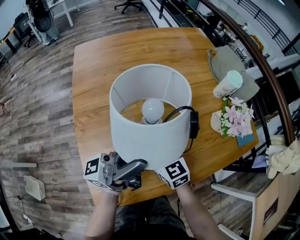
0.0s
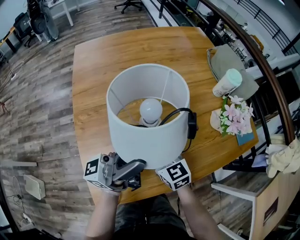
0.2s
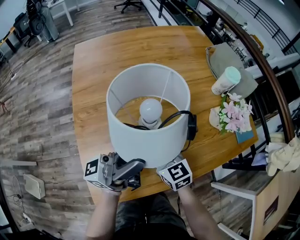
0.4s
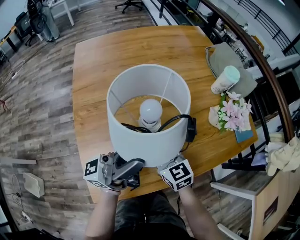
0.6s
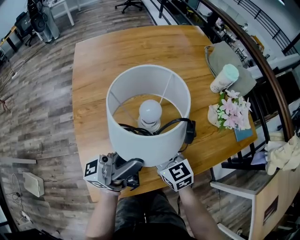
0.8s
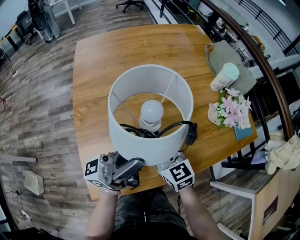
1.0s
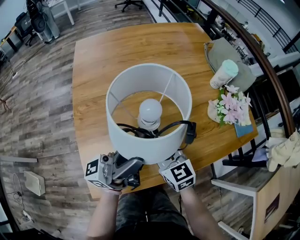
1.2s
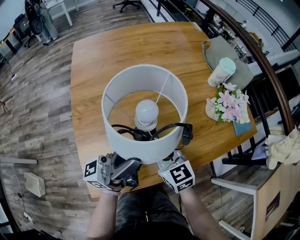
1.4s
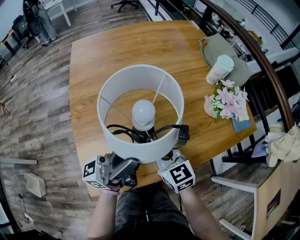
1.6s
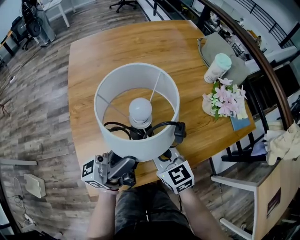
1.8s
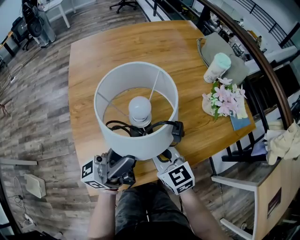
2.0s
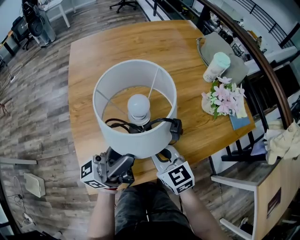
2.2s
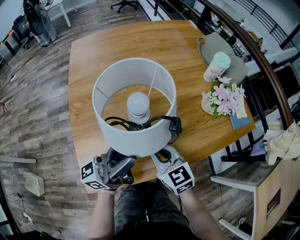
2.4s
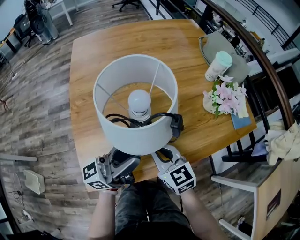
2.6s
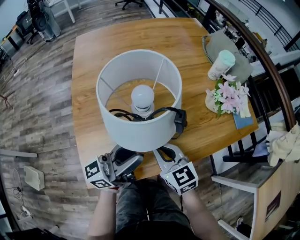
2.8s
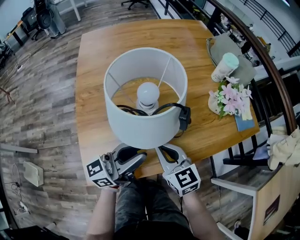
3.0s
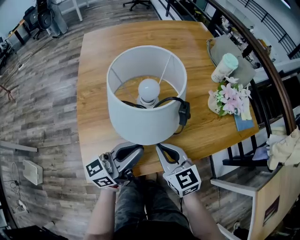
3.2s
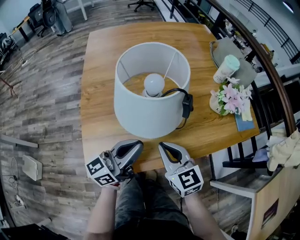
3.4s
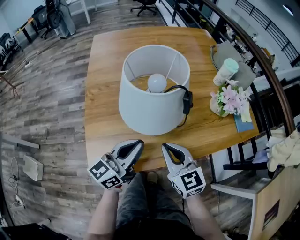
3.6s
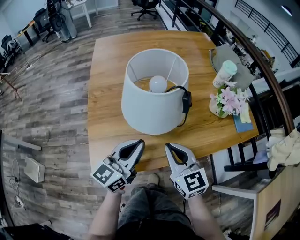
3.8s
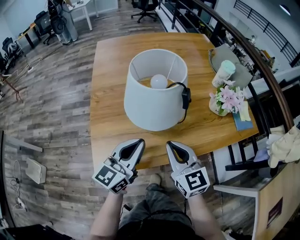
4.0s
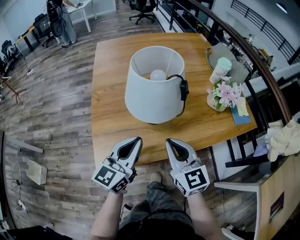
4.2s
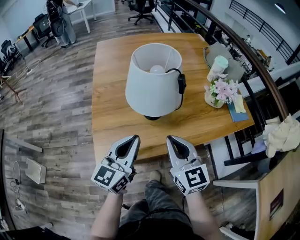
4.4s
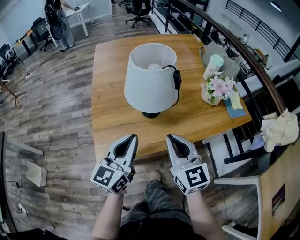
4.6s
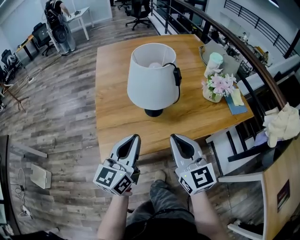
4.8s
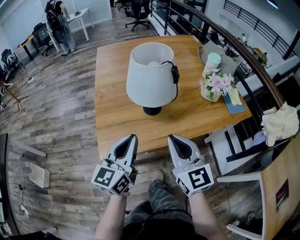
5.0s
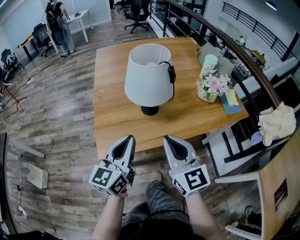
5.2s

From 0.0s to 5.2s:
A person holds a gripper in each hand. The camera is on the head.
From 0.0s to 1.8s: The left gripper shifts some 5 cm backward; the right gripper travels backward and to the right by approximately 10 cm, and closes its fingers.
From 1.8s to 3.4s: The right gripper ends up roughly 5 cm from where it was, while the left gripper goes some 10 cm downward, and turns by some 30 degrees.
From 3.4s to 5.2s: The two grippers go some 15 cm backward and upward. The left gripper rotates some 30 degrees.

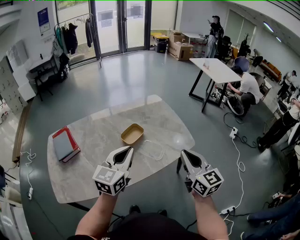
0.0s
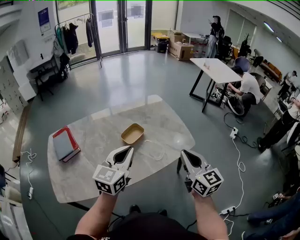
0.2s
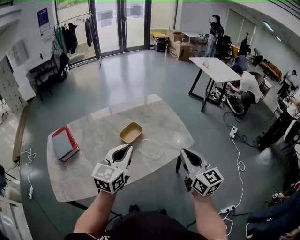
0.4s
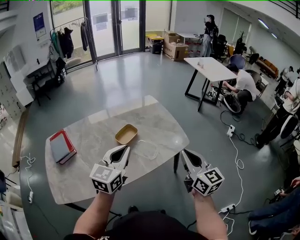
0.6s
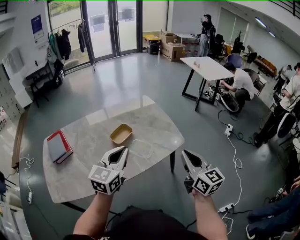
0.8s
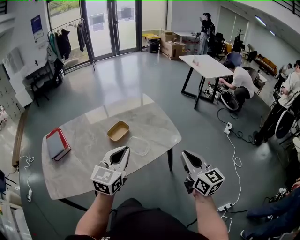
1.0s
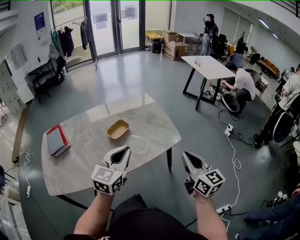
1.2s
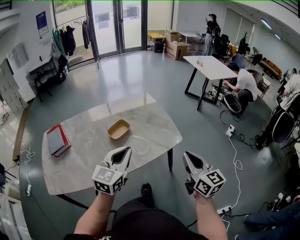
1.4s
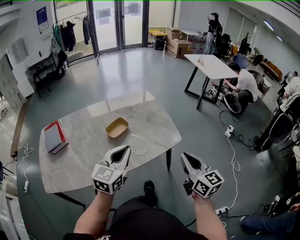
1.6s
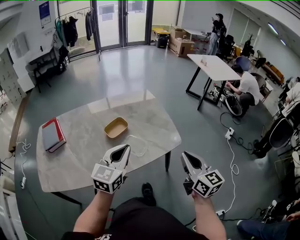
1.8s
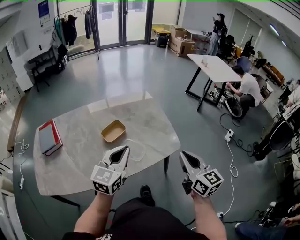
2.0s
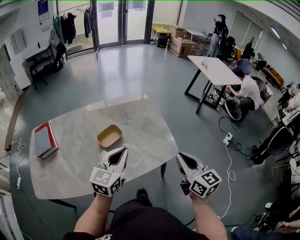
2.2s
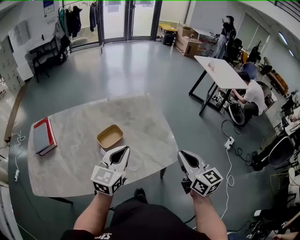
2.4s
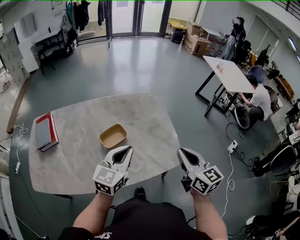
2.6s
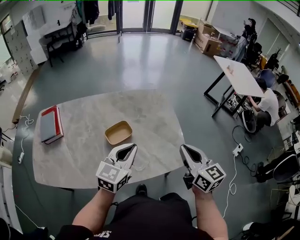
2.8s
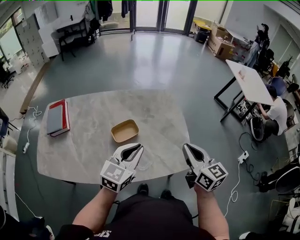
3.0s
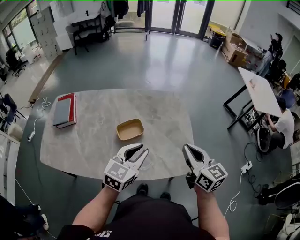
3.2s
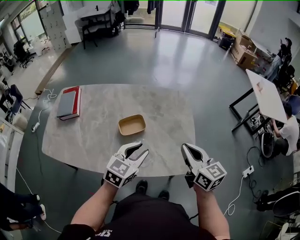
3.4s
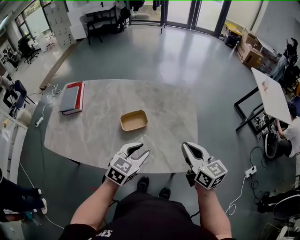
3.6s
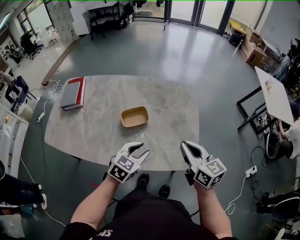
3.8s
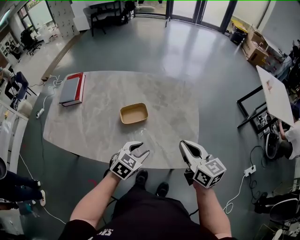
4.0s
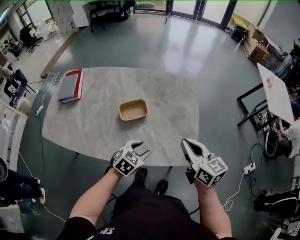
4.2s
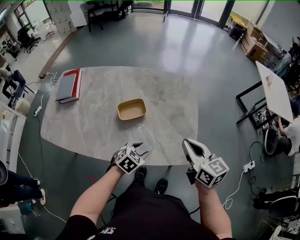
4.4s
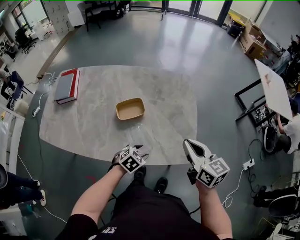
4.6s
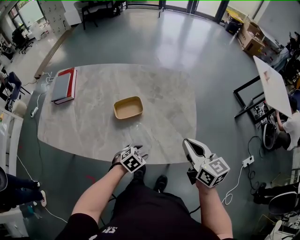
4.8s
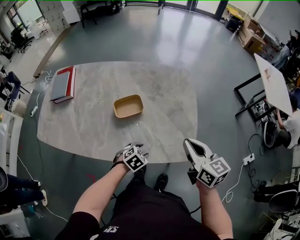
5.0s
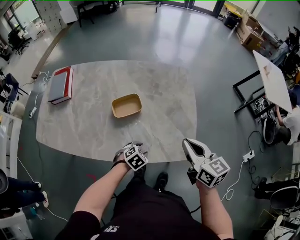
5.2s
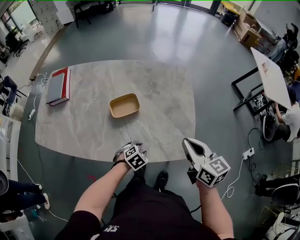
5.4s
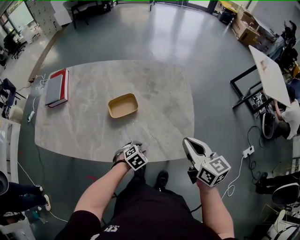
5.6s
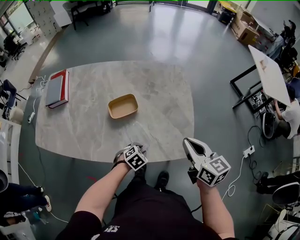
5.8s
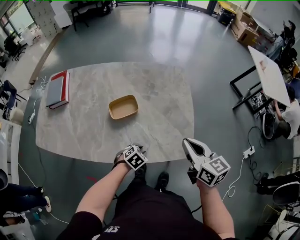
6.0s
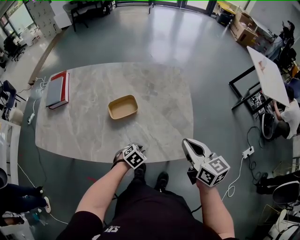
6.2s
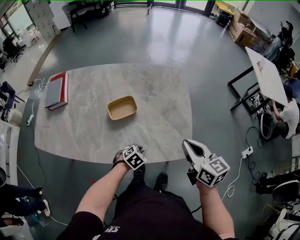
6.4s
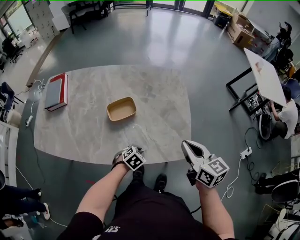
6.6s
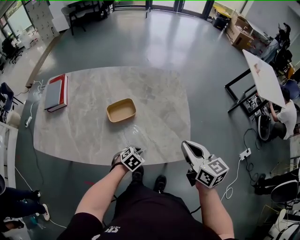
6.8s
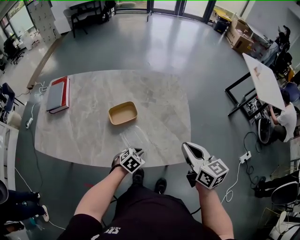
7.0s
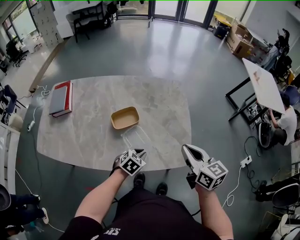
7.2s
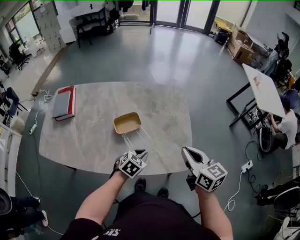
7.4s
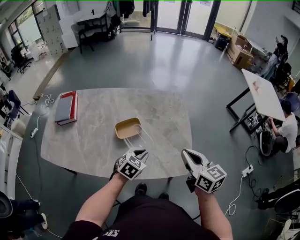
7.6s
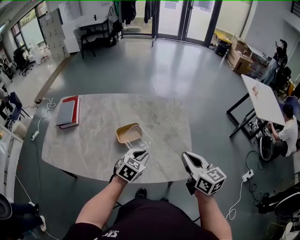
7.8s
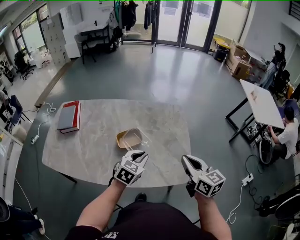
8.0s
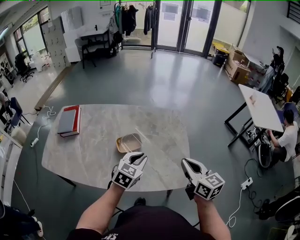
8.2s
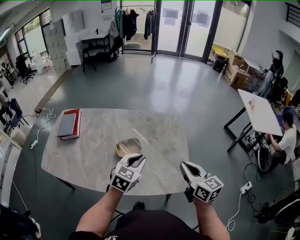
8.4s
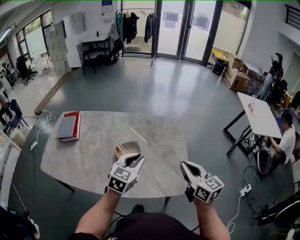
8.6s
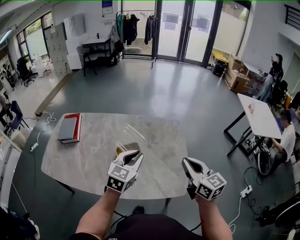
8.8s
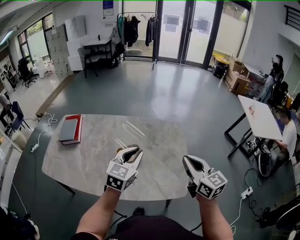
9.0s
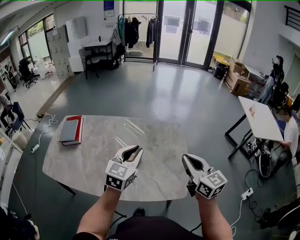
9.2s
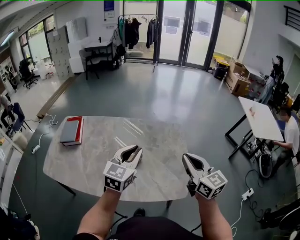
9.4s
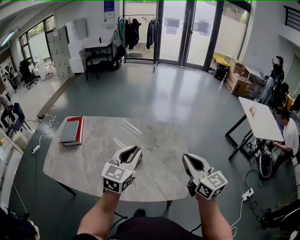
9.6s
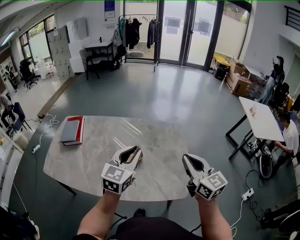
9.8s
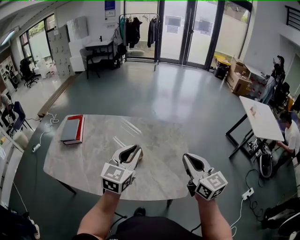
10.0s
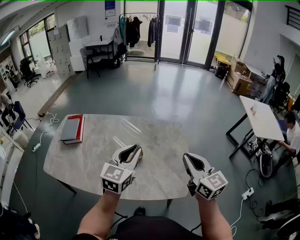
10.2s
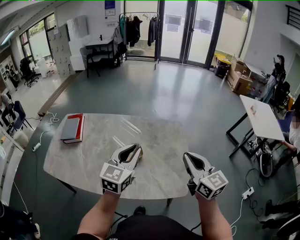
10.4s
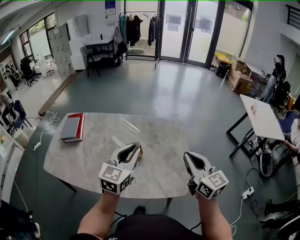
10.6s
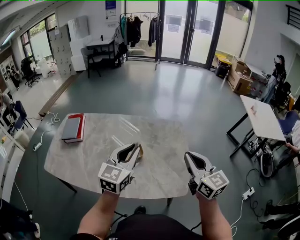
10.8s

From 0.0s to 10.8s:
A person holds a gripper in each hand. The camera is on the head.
From 0.0s to 1.6s: Both grippers move to the right, some 10 cm.
From 1.6s to 3.0s: The right gripper heads forward, covering some 25 cm, and swivels approximately 20 degrees. The left gripper heads forward, covering about 15 cm.
From 3.0s to 4.6s: The left gripper shifts some 25 cm downward, points its fingers some 40 degrees further downward, and opens its fingers.
From 4.6s to 6.2s: The left gripper is displaced downward by approximately 5 cm, and closes.
From 6.2s to 7.8s: The left gripper moves upward, roughly 20 cm, and rotates about 30 degrees. The right gripper changes place by some 5 cm.
From 7.8s to 9.2s: The right gripper travels upward by approximately 10 cm, while the left gripper is displaced upward by approximately 20 cm, and turns by approximately 30 degrees.
From 9.2s to 10.8s: There are only small adjustments of the grippers.

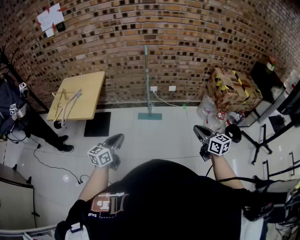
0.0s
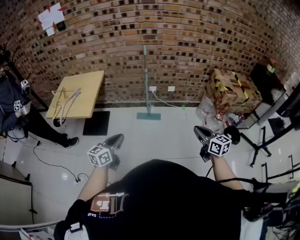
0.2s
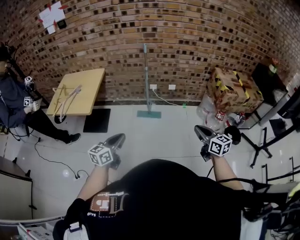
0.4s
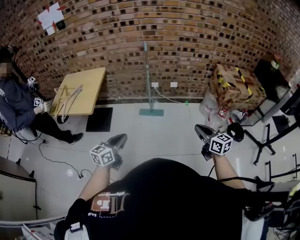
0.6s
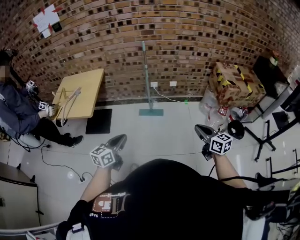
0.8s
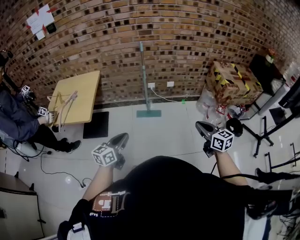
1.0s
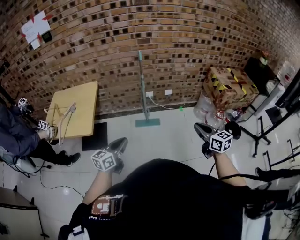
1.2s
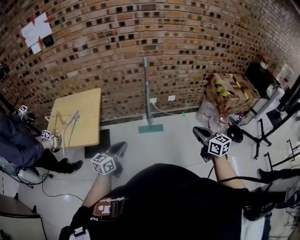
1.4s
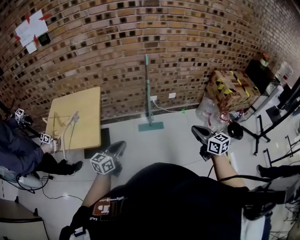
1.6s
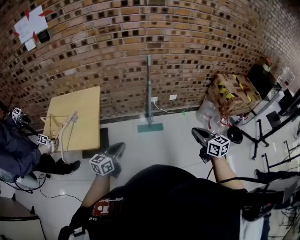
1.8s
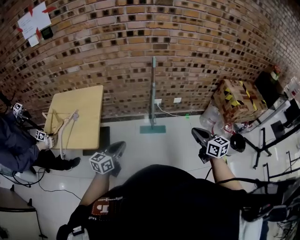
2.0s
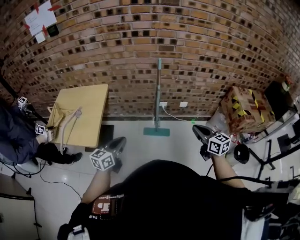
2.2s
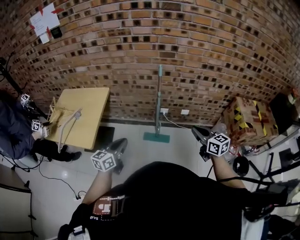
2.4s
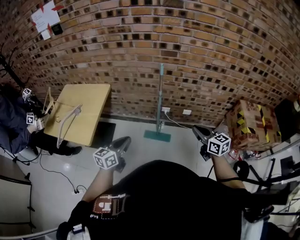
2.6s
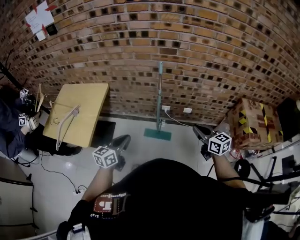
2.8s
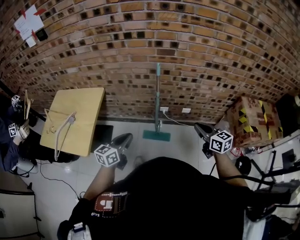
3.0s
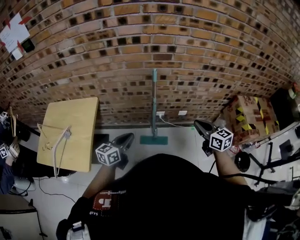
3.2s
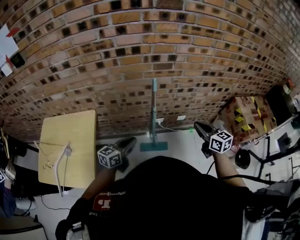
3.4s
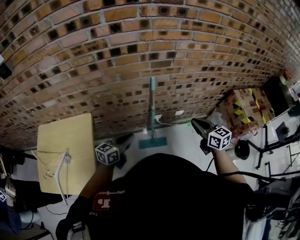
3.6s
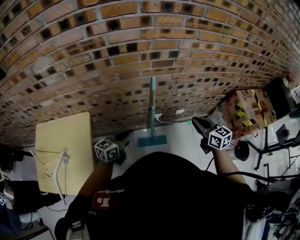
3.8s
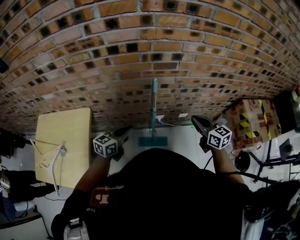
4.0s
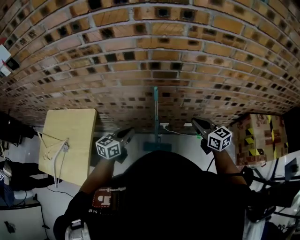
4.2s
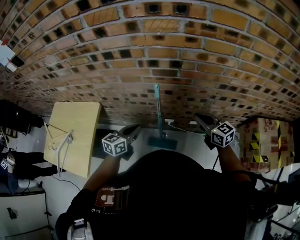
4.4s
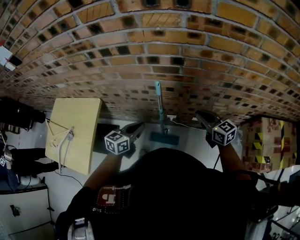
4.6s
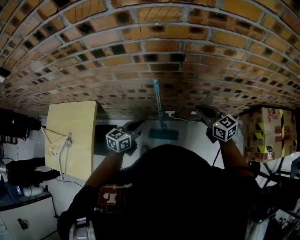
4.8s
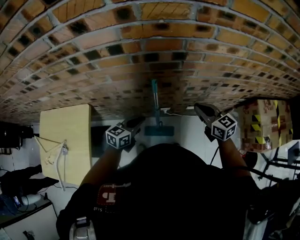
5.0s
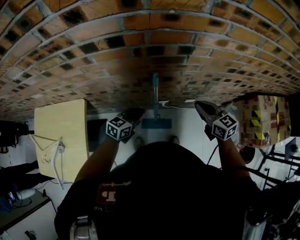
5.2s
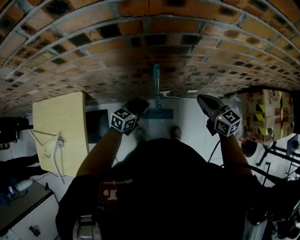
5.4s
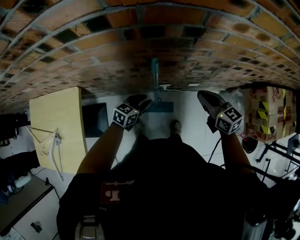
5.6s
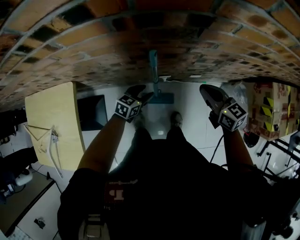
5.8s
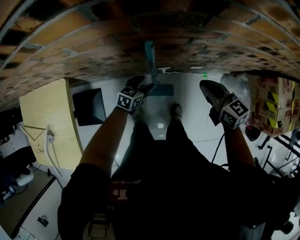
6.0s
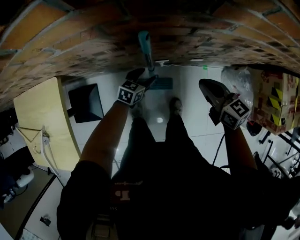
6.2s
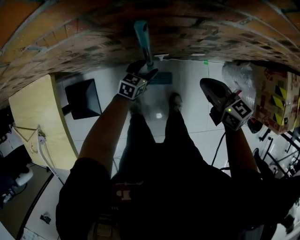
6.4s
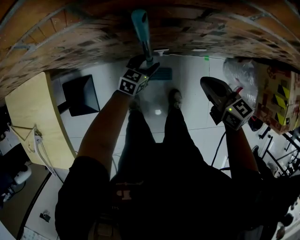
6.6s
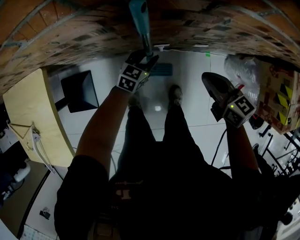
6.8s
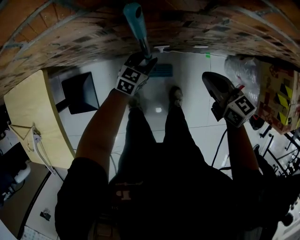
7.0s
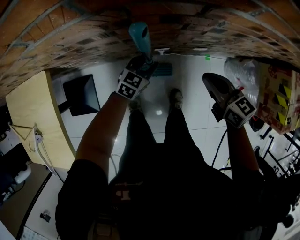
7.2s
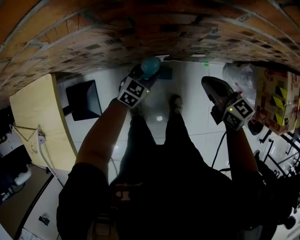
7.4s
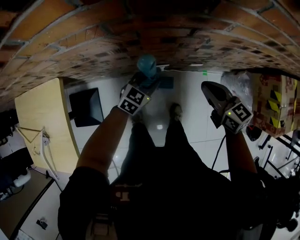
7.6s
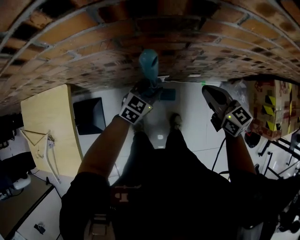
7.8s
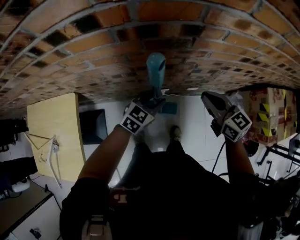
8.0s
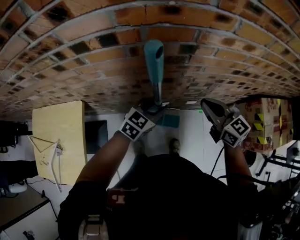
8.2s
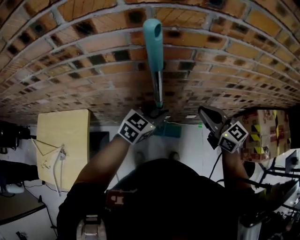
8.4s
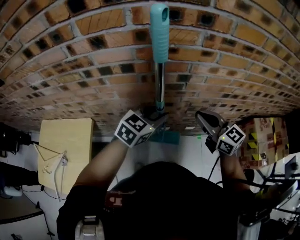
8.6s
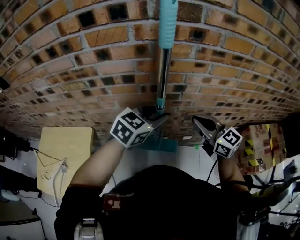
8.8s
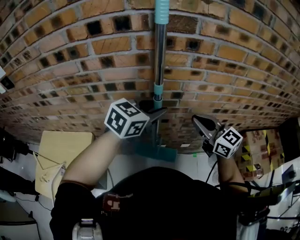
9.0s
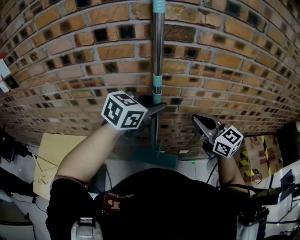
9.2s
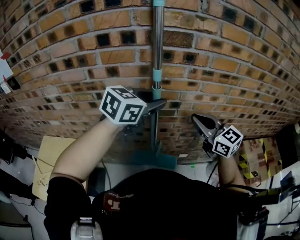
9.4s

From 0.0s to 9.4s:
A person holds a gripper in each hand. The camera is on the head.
From 0.0s to 1.6s: The right gripper is displaced to the left and forward by roughly 20 cm, while the left gripper shifts approximately 20 cm forward and to the left.
From 1.6s to 3.2s: The left gripper travels forward and to the right by roughly 30 cm. Meanwhile the right gripper is displaced forward by roughly 35 cm.
From 3.2s to 4.8s: The grippers both shift forward by roughly 25 cm.
From 4.8s to 6.2s: The left gripper goes some 30 cm downward, turns by some 20 degrees, and opens. Meanwhile the right gripper goes some 15 cm downward.
From 6.2s to 7.8s: The left gripper shifts about 15 cm upward, changes its angle by approximately 20 degrees, and closes. The right gripper shifts roughly 5 cm upward.
From 7.8s to 9.4s: The right gripper shifts roughly 30 cm upward, and swivels roughly 30 degrees; the left gripper goes roughly 50 cm upward.
